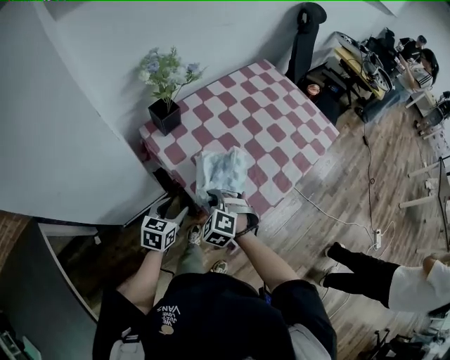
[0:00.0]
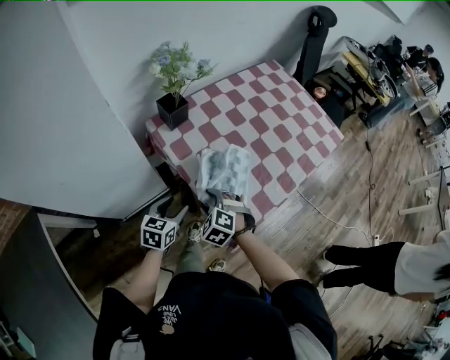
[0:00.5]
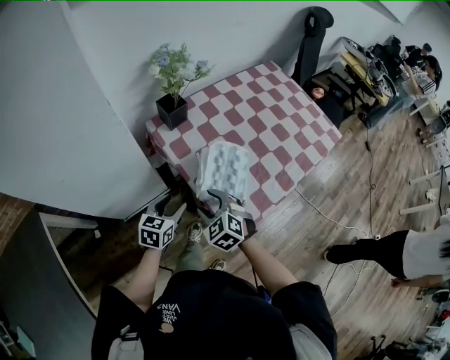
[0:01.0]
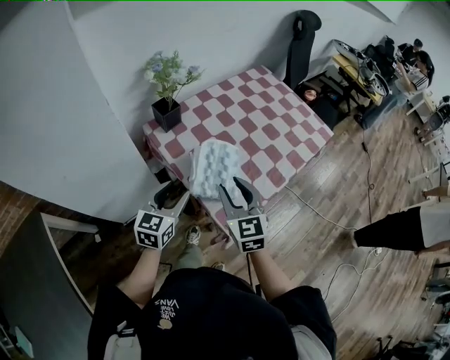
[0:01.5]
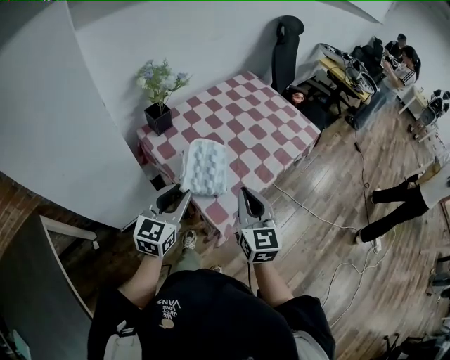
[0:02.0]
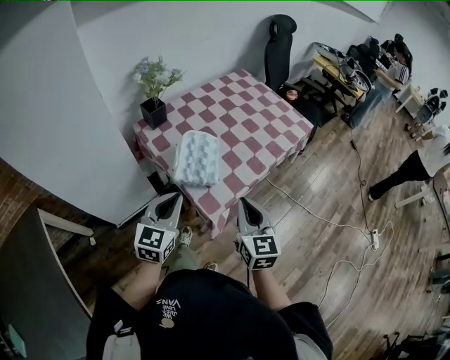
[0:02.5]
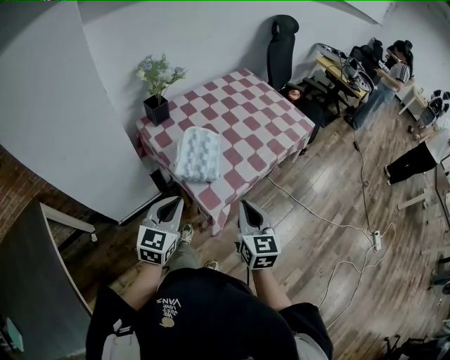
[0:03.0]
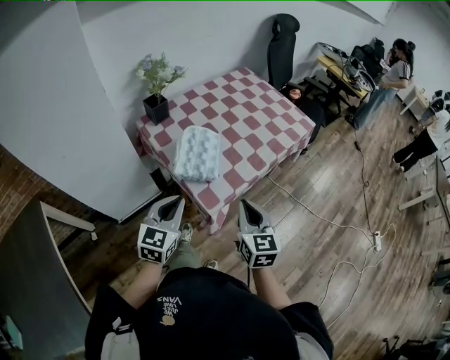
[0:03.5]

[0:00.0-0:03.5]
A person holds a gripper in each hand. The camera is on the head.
0:00.0 to 0:02.0: The right gripper moves upward, to the right and backward, roughly 25 cm, tilts its fingers roughly 40 degrees upward, and opens and closes again, while the left gripper travels upward by approximately 20 cm, and swivels roughly 30 degrees.
0:02.0 to 0:03.5: The right gripper goes roughly 10 cm backward, downward and to the right, while the left gripper heads backward, covering about 10 cm, and closes.

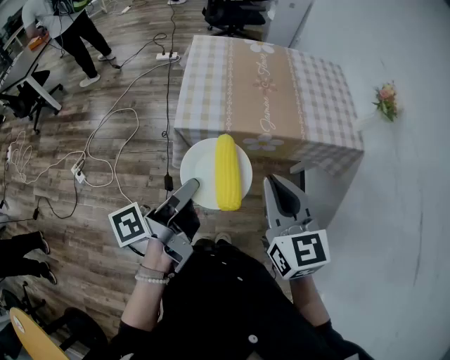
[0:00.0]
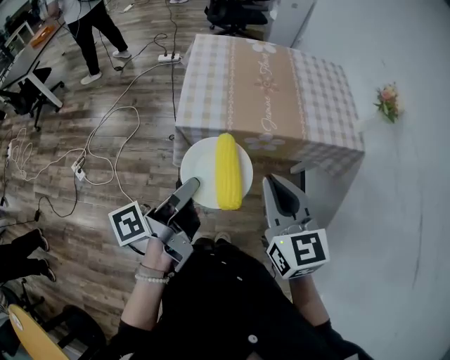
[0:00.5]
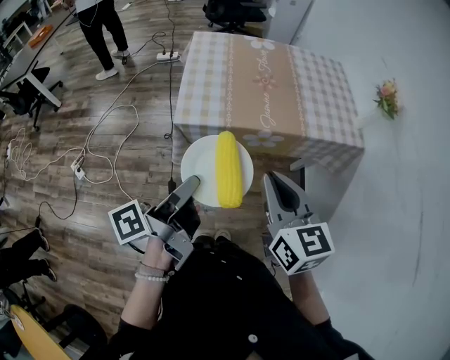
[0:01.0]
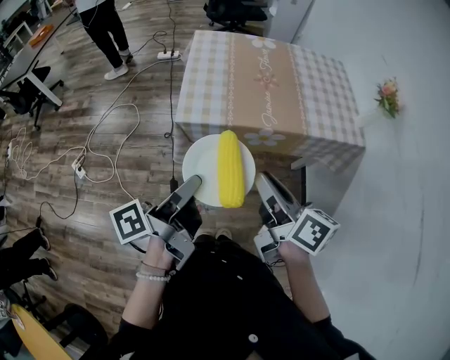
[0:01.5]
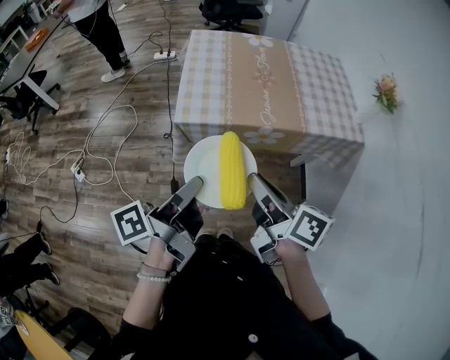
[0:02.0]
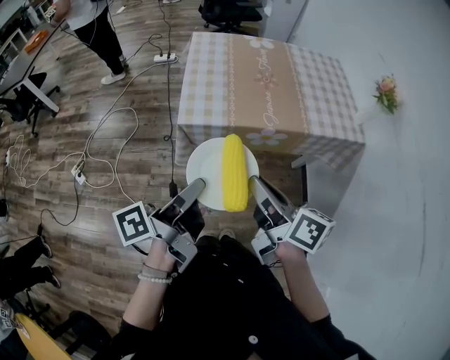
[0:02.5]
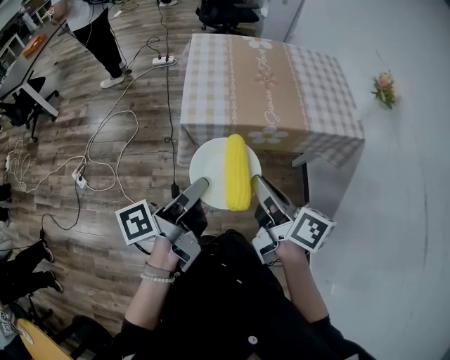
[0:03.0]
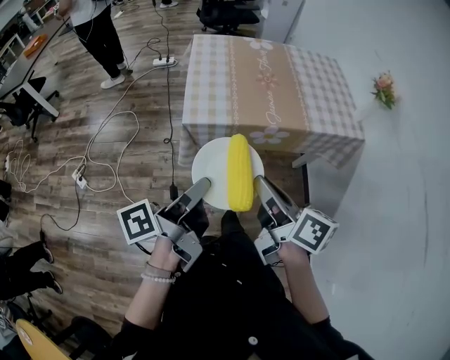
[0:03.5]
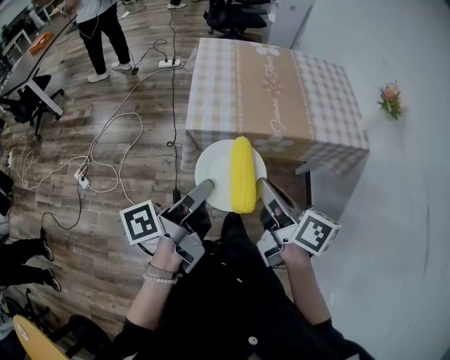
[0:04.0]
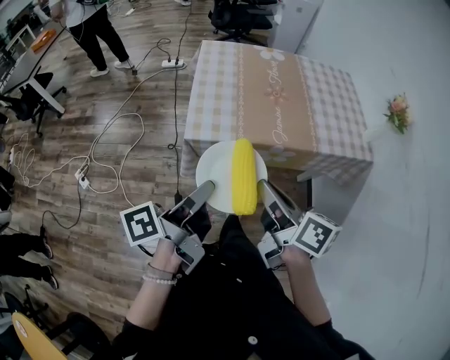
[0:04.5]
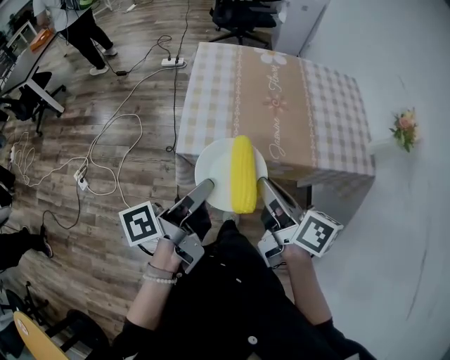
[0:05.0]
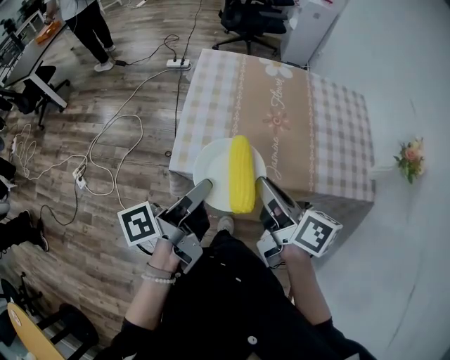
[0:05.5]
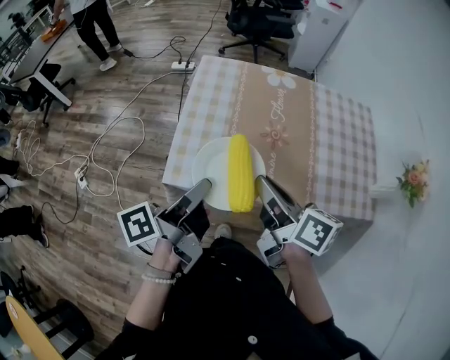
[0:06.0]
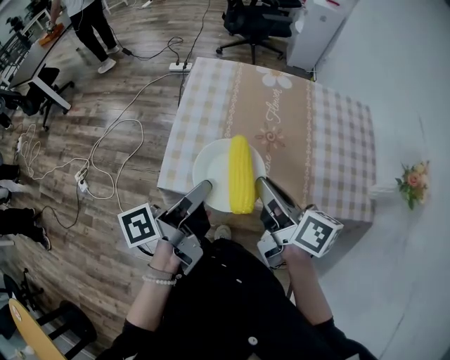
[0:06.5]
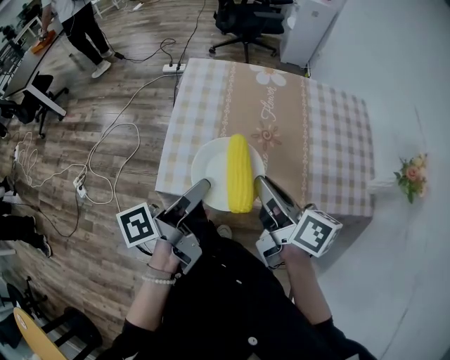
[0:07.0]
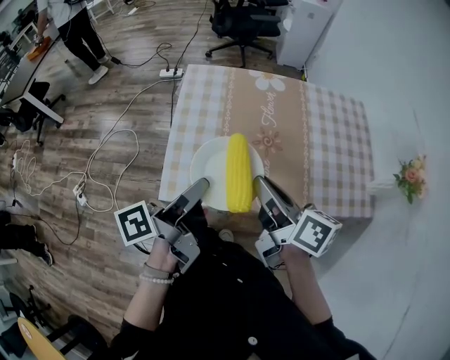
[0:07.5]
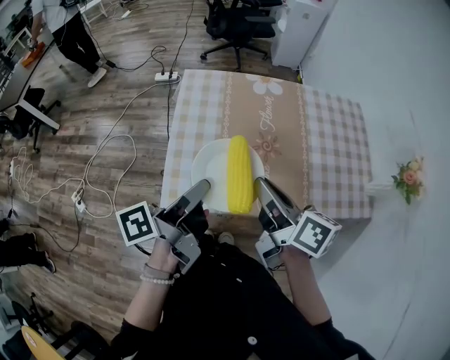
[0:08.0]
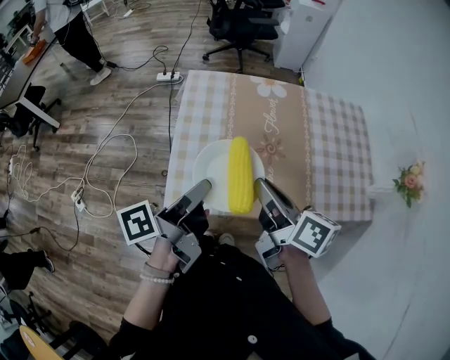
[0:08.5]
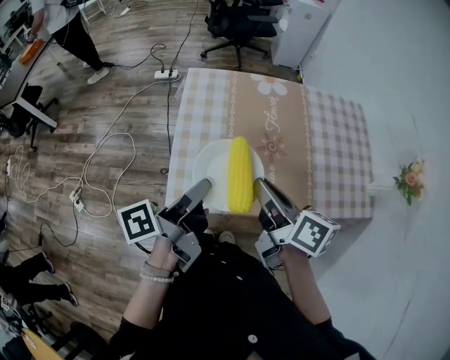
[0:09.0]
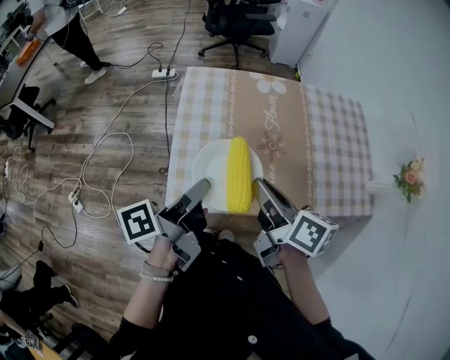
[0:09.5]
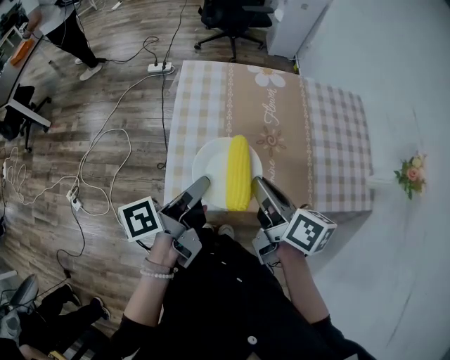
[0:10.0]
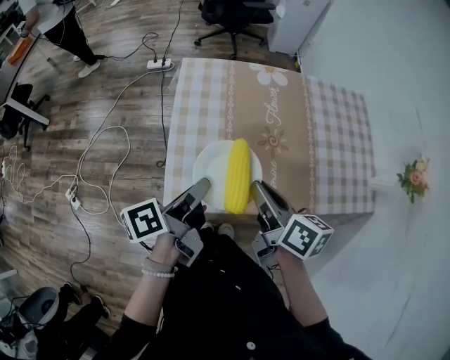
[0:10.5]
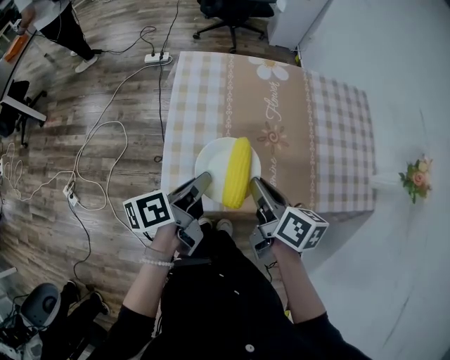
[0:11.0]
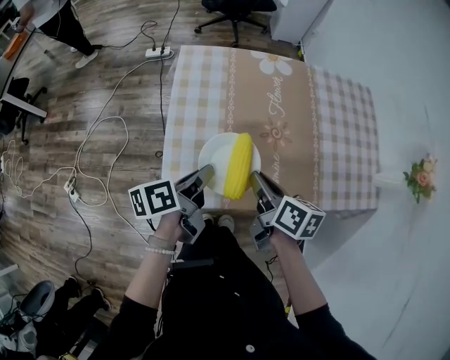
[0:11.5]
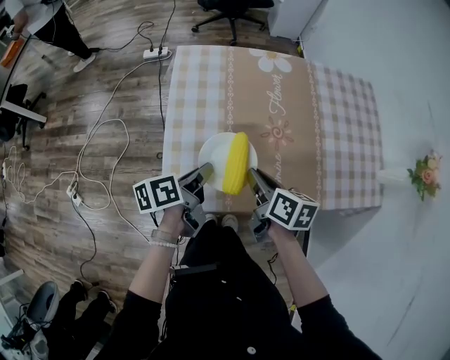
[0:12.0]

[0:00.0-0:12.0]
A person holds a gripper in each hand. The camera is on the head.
0:00.0 to 0:02.0: The right gripper changes place by roughly 5 cm, and twists about 50 degrees clockwise, seen from behind.
0:02.0 to 0:04.0: The grippers move only a little.
0:04.0 to 0:06.0: Both grippers travel together forward, approximately 25 cm.
0:06.0 to 0:08.0: Both grippers travel together forward, roughly 5 cm.
0:08.0 to 0:10.0: The grippers stay close to where they were, moving slightly.
0:10.0 to 0:12.0: The left gripper heads downward and forward, covering roughly 15 cm, and swivels some 20 degrees; the right gripper travels downward by some 15 cm.

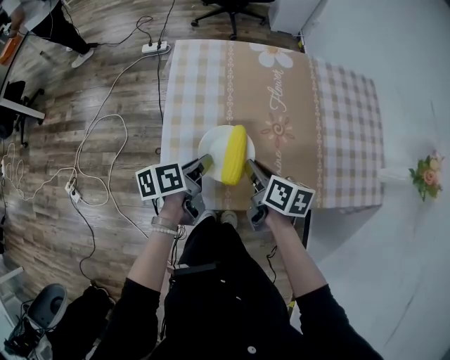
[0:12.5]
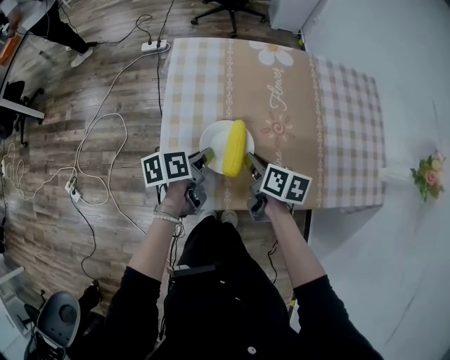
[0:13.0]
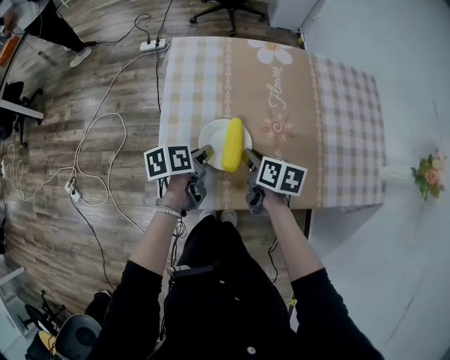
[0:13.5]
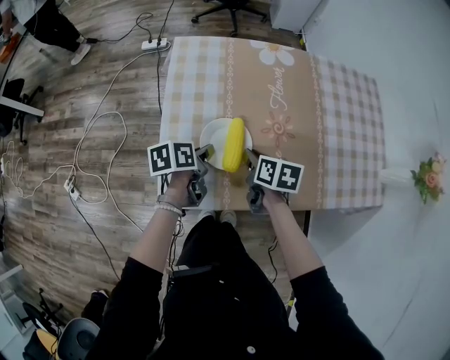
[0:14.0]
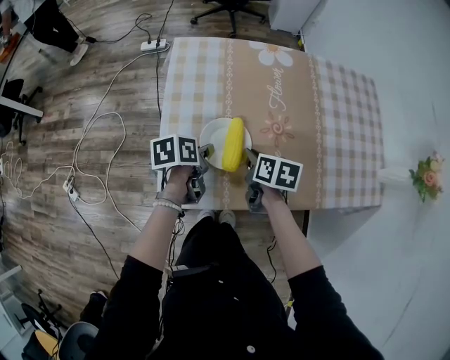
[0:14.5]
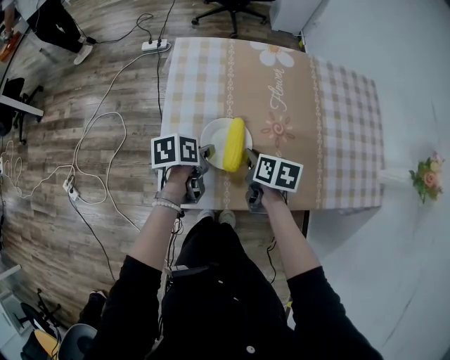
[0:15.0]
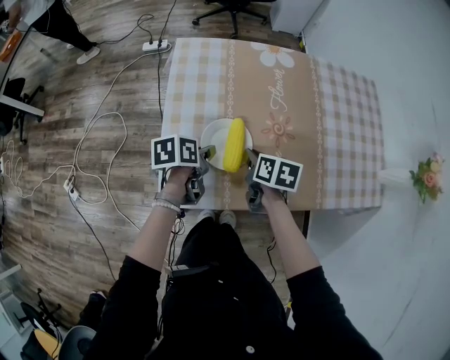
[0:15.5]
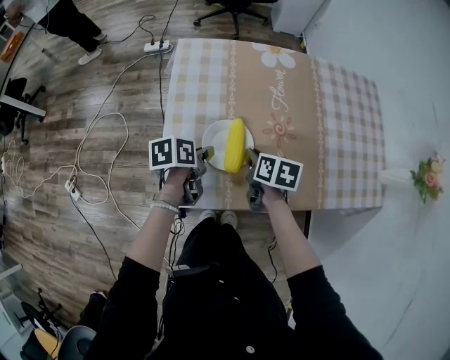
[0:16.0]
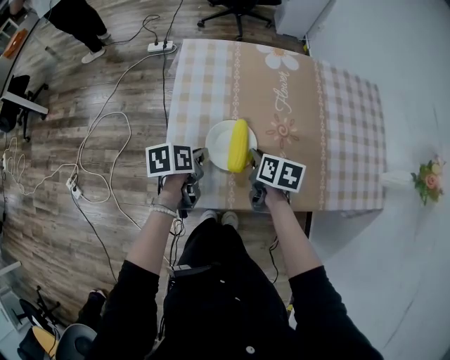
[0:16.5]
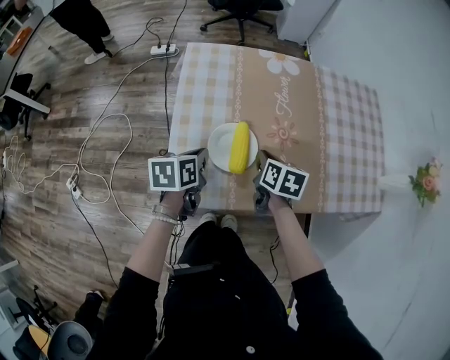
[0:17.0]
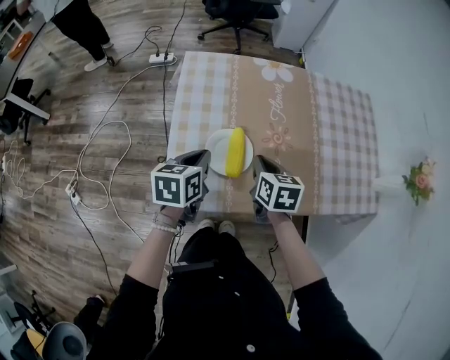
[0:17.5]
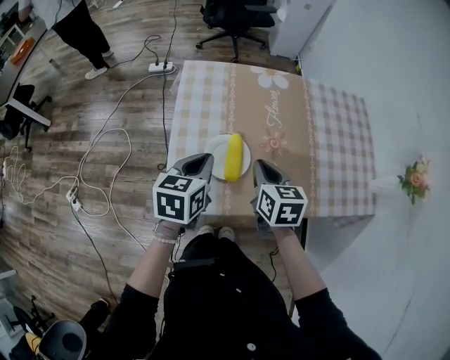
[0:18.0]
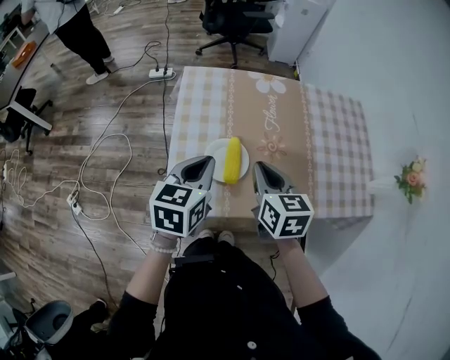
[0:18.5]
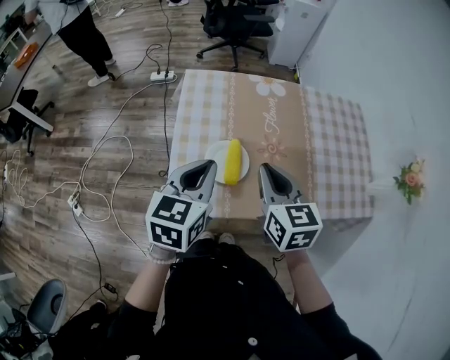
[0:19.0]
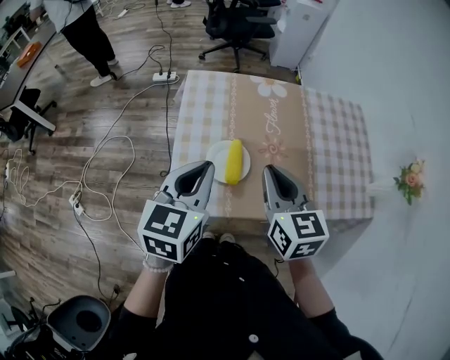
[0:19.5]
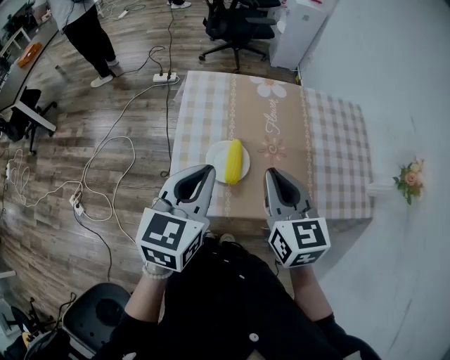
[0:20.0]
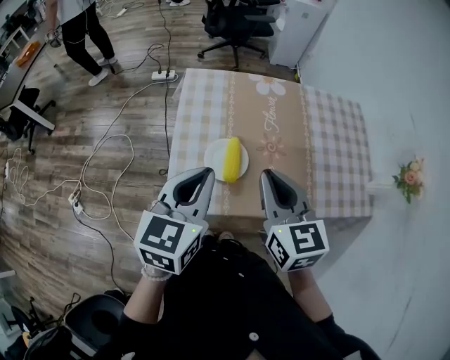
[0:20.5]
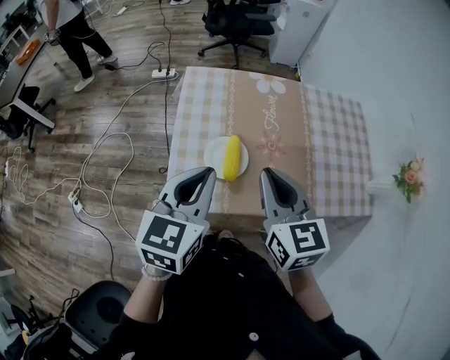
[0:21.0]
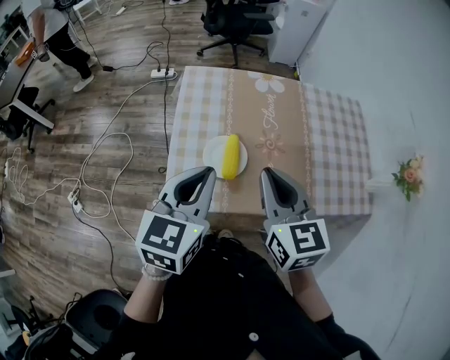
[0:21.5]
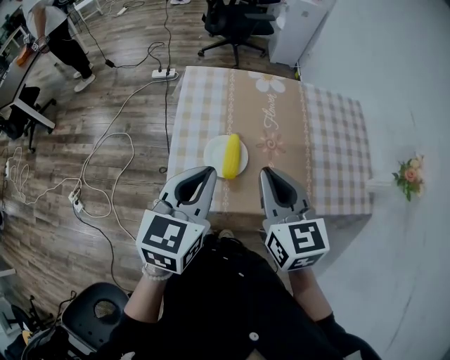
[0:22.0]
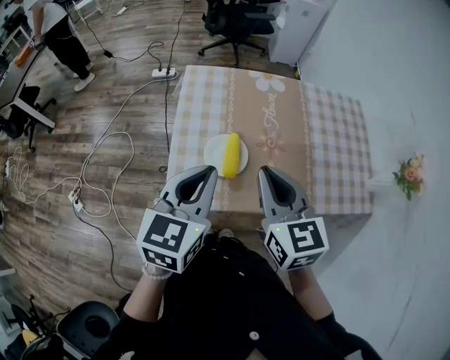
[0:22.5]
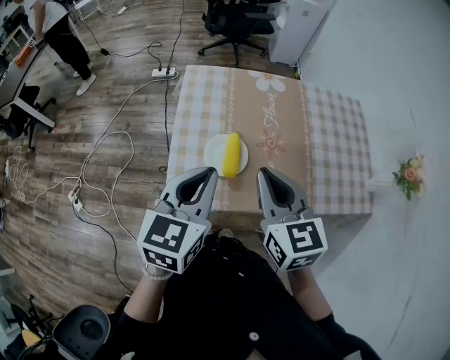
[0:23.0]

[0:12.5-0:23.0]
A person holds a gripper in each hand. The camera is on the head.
0:12.5 to 0:14.5: The two grippers go about 5 cm downward.
0:14.5 to 0:16.5: The grippers make only small movements.
0:16.5 to 0:19.0: The two grippers go about 25 cm upward. The right gripper turns by roughly 40 degrees. Meanwhile the left gripper turns by some 50 degrees.
0:19.0 to 0:21.0: The right gripper changes place by some 5 cm, while the left gripper shifts by approximately 5 cm.
0:21.0 to 0:23.0: Both grippers stay about where they are.

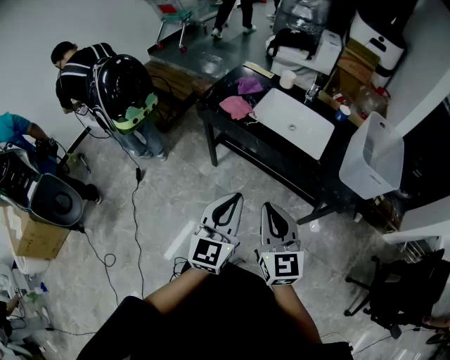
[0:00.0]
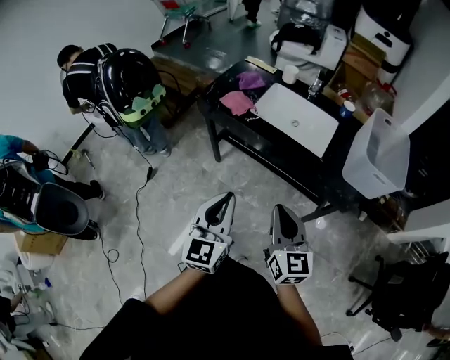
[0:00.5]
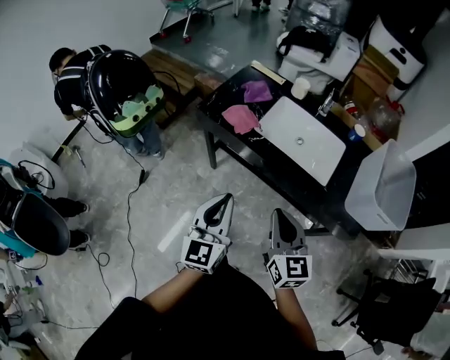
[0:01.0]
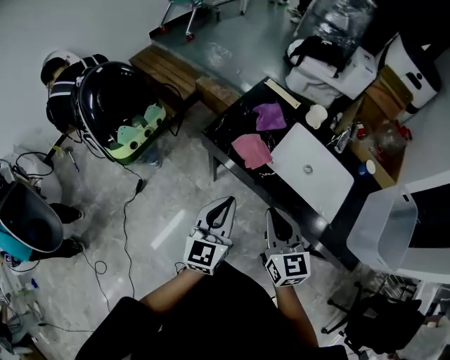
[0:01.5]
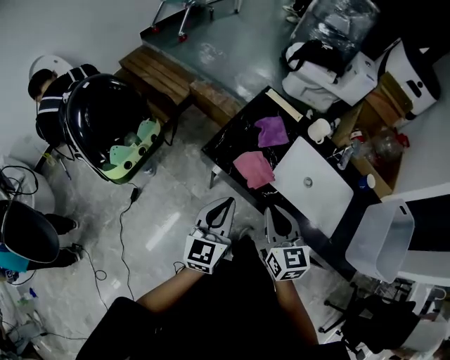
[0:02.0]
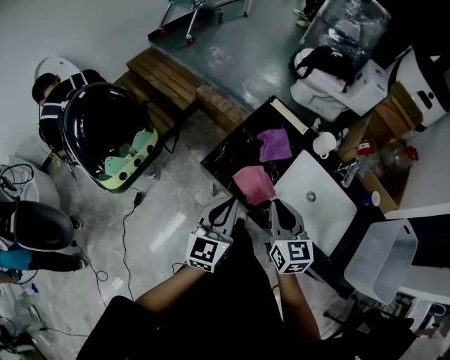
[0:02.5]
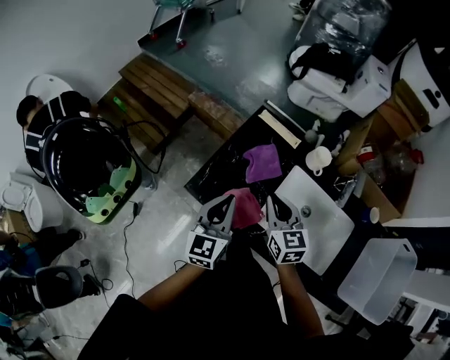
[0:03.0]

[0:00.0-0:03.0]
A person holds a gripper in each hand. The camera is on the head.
0:00.0 to 0:01.5: Both grippers move forward, roughly 30 cm.
0:01.5 to 0:03.0: Both grippers travel together forward, roughly 30 cm.
